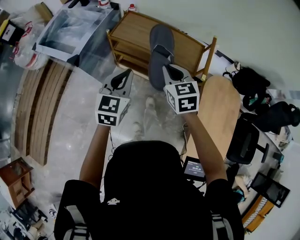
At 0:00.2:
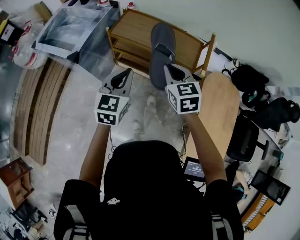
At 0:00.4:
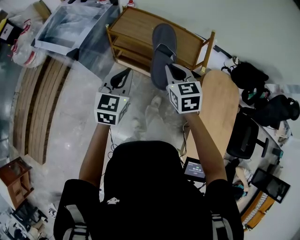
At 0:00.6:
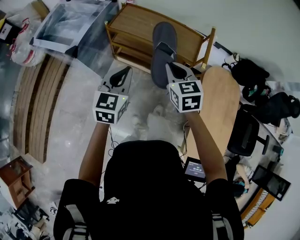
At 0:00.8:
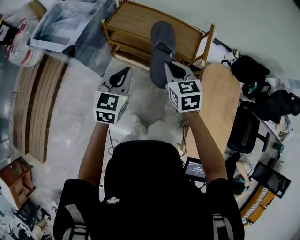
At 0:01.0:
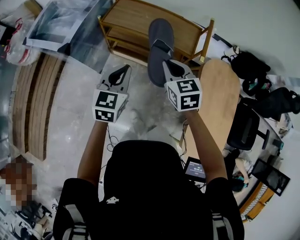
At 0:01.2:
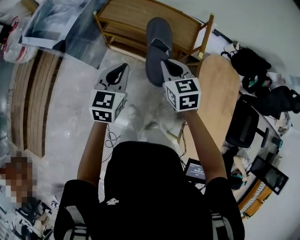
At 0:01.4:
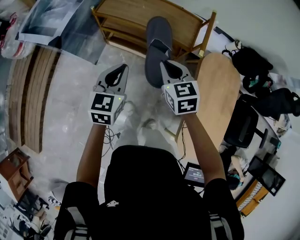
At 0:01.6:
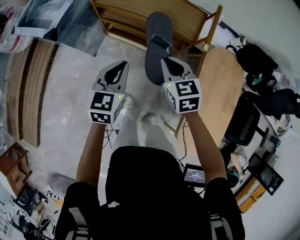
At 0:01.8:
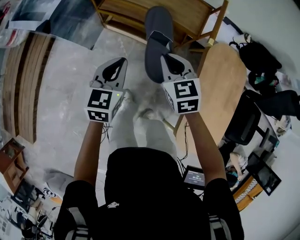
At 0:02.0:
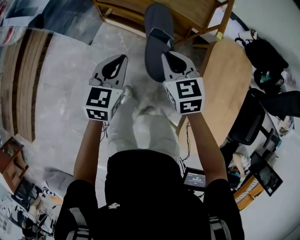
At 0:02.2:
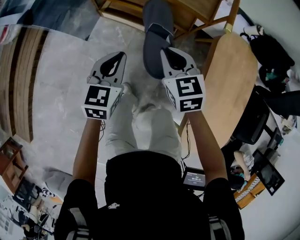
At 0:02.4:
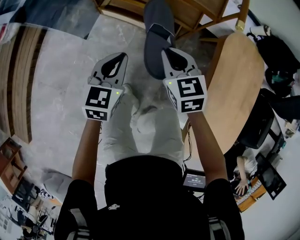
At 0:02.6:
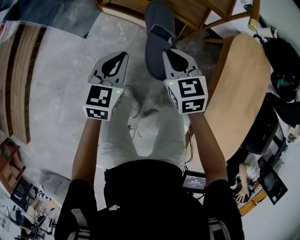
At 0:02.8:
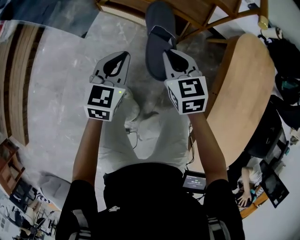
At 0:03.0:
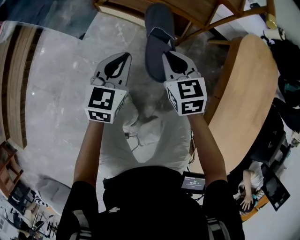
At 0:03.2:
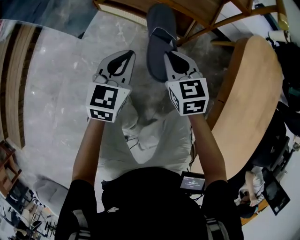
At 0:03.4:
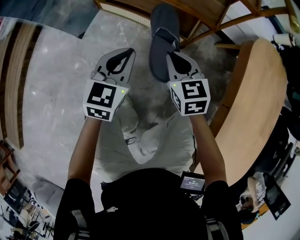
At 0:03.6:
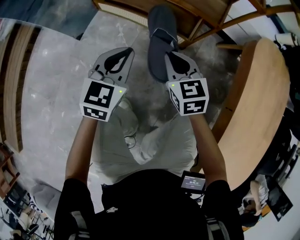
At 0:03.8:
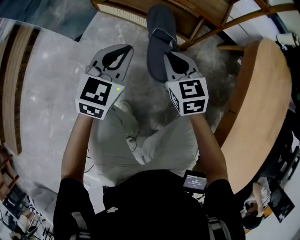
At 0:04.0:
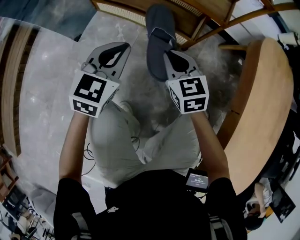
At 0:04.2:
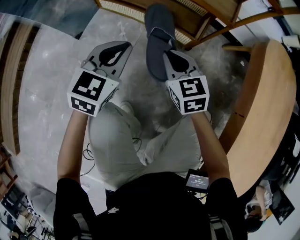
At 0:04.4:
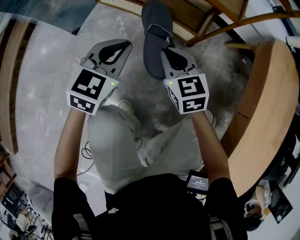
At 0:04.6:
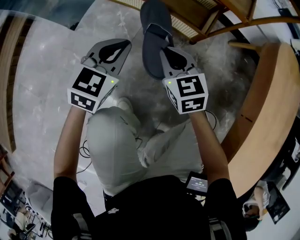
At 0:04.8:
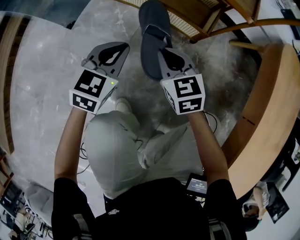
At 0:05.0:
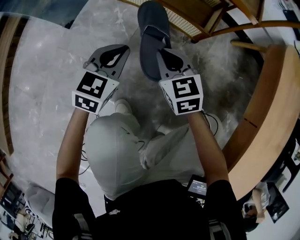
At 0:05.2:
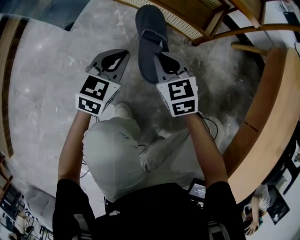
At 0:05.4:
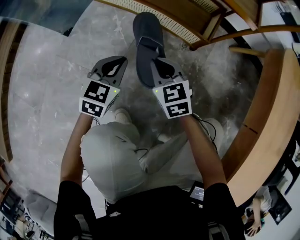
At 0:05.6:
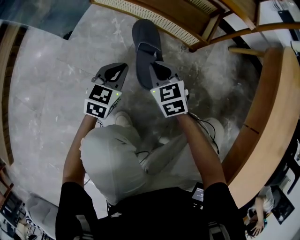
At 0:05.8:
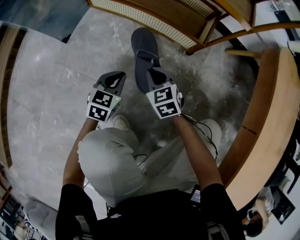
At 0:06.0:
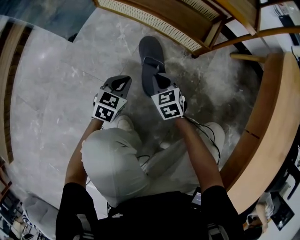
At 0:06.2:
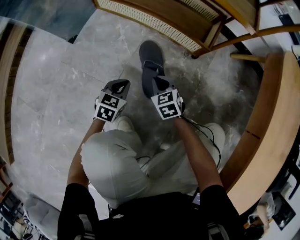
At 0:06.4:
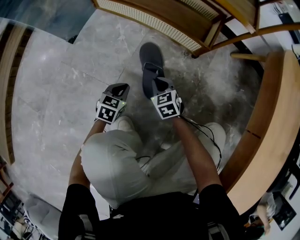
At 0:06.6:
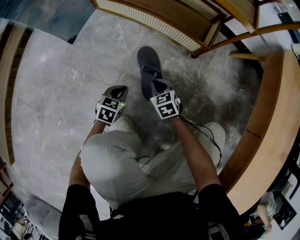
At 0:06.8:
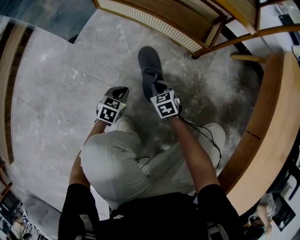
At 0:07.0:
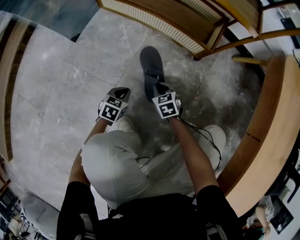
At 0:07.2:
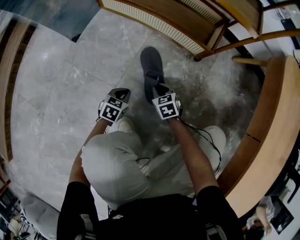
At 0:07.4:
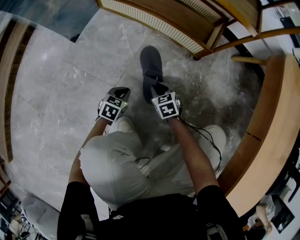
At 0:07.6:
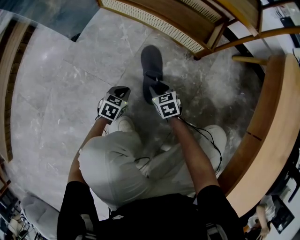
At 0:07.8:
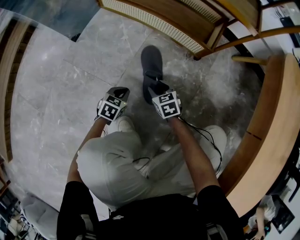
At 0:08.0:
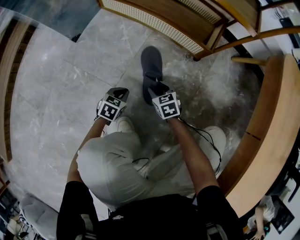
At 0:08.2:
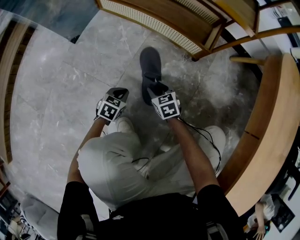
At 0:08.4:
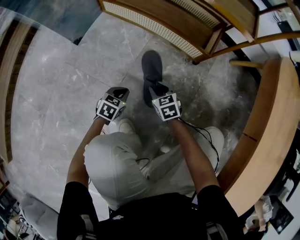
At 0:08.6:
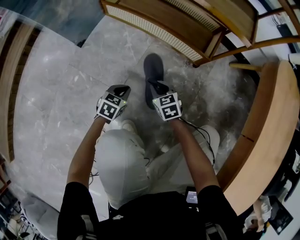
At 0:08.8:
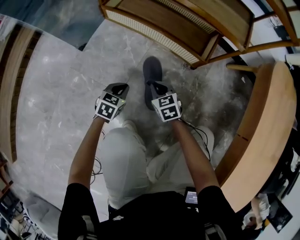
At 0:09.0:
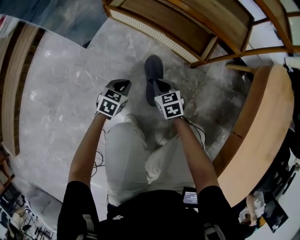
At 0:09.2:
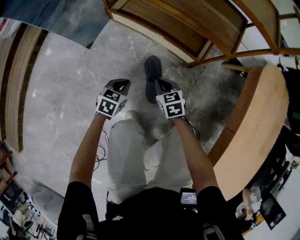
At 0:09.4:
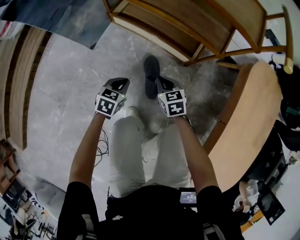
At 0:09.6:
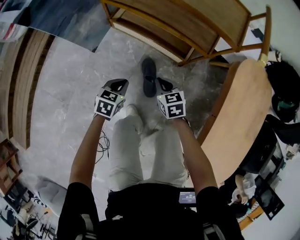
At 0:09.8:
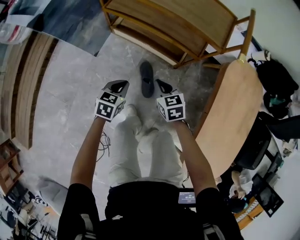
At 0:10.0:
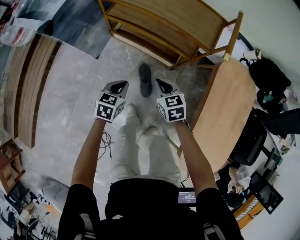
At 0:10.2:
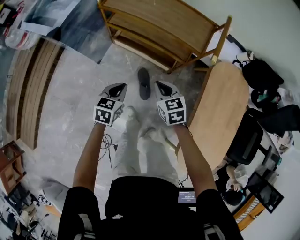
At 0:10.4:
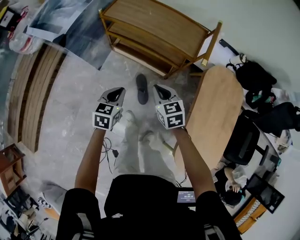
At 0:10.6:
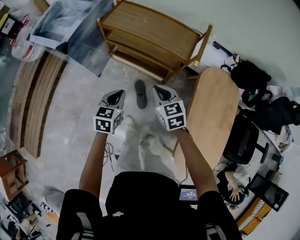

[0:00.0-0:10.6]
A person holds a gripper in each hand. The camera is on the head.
0:00.0 to 0:01.6: The grippers both shift downward, backward and to the right by approximately 15 cm.
0:01.6 to 0:03.0: The two grippers go roughly 35 cm downward.
0:03.0 to 0:04.6: The grippers both shift downward by about 20 cm.
0:04.6 to 0:06.0: The two grippers go about 20 cm downward.
0:06.0 to 0:07.6: Both grippers travel together downward, about 10 cm. The right gripper opens.
0:07.6 to 0:09.0: The right gripper moves upward, about 15 cm, and closes its fingers. The left gripper is displaced upward and forward by approximately 15 cm.
0:09.0 to 0:10.6: Both grippers travel together upward, roughly 60 cm.

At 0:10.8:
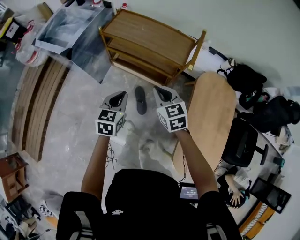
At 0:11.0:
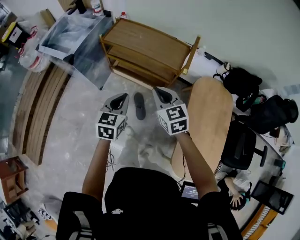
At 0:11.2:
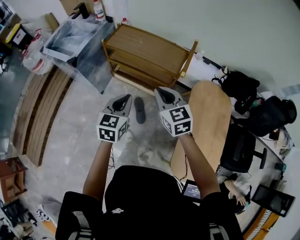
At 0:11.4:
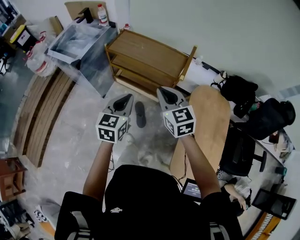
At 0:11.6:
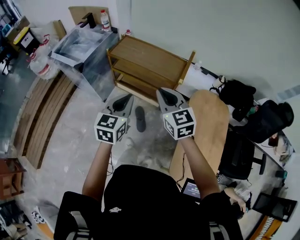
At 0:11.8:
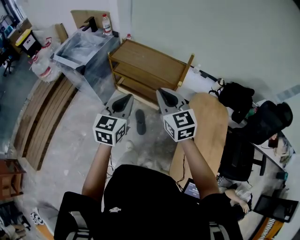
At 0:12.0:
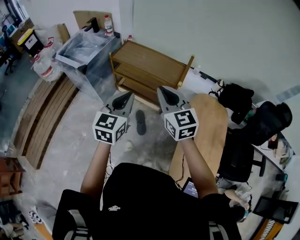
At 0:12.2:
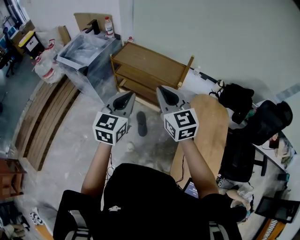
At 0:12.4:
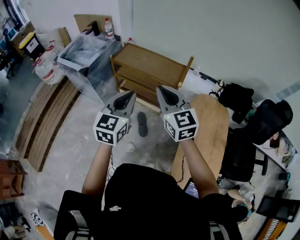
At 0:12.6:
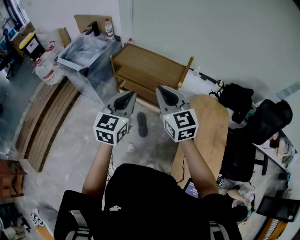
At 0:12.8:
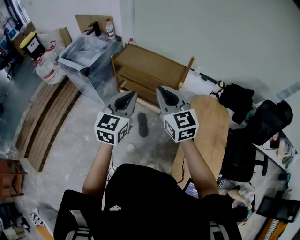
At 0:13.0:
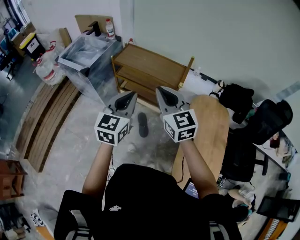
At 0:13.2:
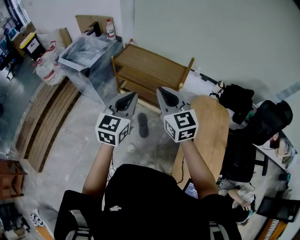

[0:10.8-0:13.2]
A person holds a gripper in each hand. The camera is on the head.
0:10.8 to 0:12.0: Both grippers move upward, roughly 25 cm. The right gripper turns by roughly 20 degrees. Meanwhile the left gripper swivels roughly 20 degrees.
0:12.0 to 0:13.2: The grippers stay close to where they were, moving slightly.

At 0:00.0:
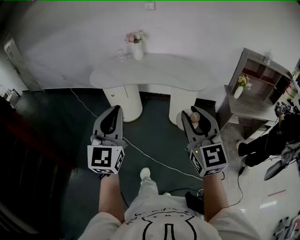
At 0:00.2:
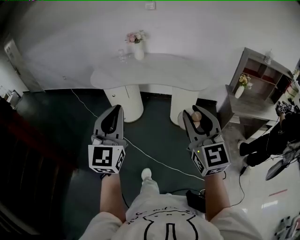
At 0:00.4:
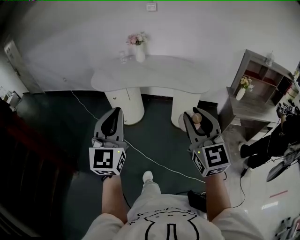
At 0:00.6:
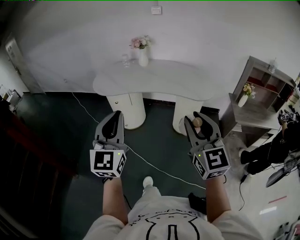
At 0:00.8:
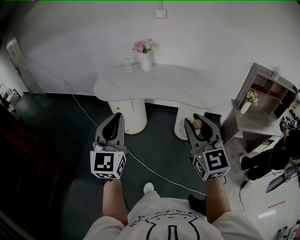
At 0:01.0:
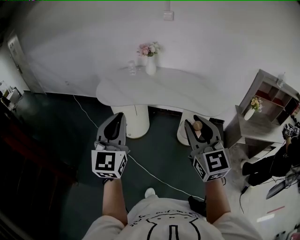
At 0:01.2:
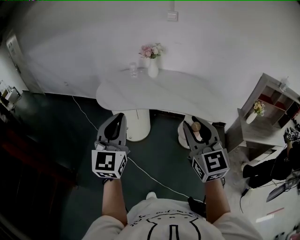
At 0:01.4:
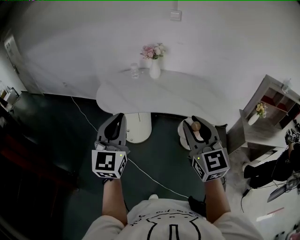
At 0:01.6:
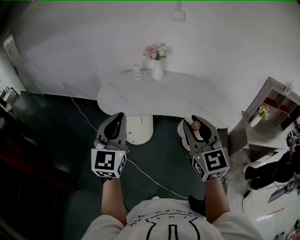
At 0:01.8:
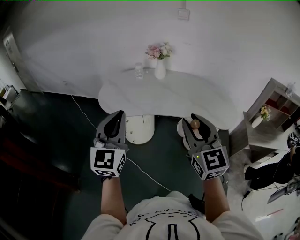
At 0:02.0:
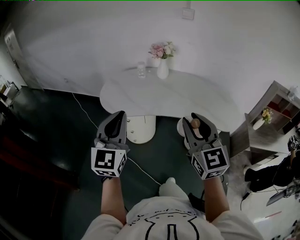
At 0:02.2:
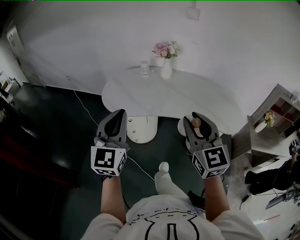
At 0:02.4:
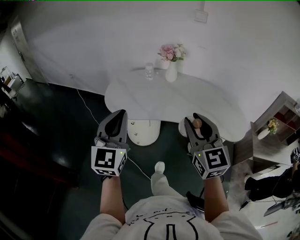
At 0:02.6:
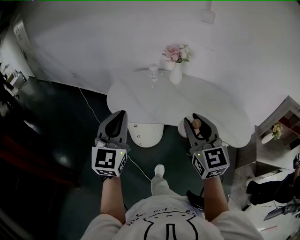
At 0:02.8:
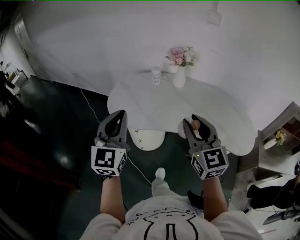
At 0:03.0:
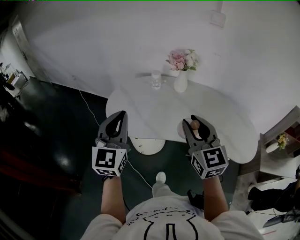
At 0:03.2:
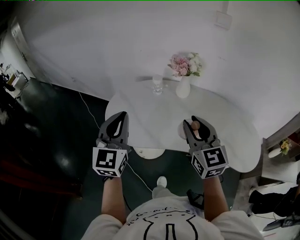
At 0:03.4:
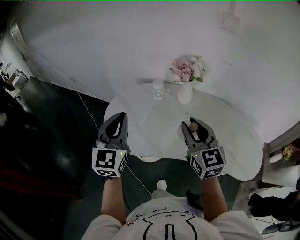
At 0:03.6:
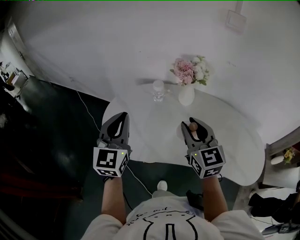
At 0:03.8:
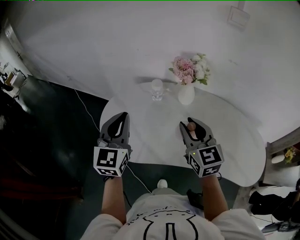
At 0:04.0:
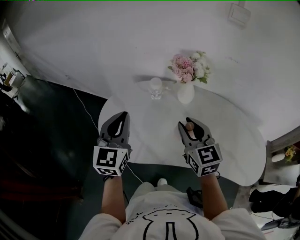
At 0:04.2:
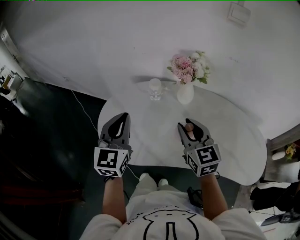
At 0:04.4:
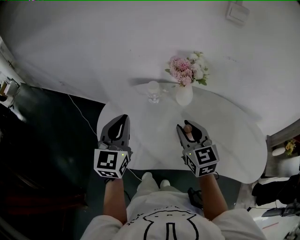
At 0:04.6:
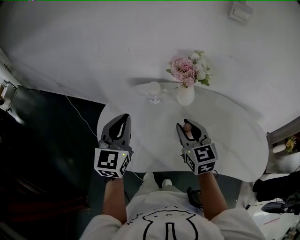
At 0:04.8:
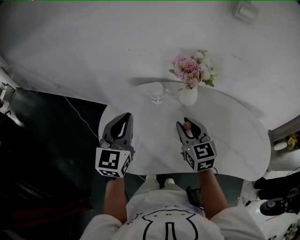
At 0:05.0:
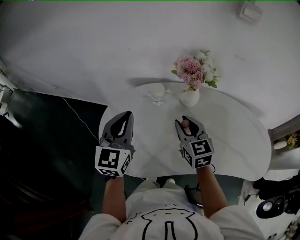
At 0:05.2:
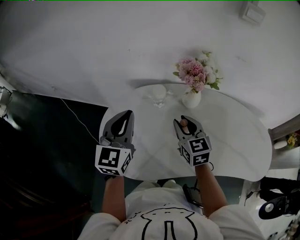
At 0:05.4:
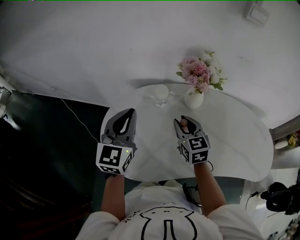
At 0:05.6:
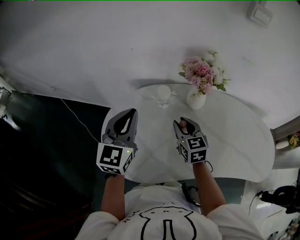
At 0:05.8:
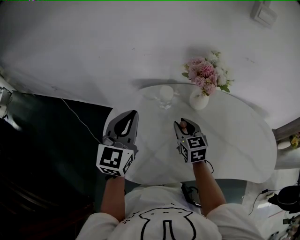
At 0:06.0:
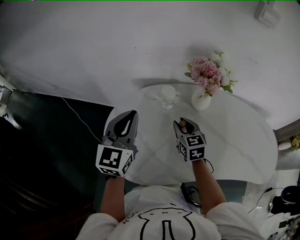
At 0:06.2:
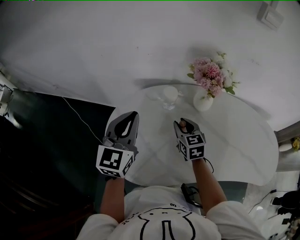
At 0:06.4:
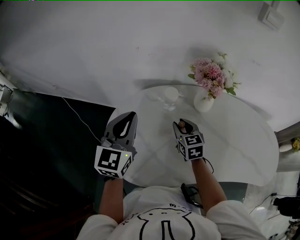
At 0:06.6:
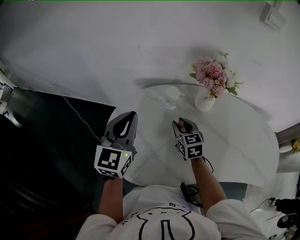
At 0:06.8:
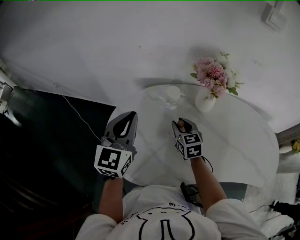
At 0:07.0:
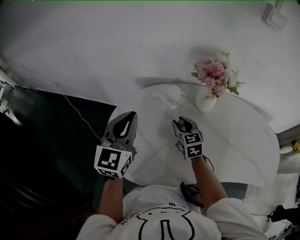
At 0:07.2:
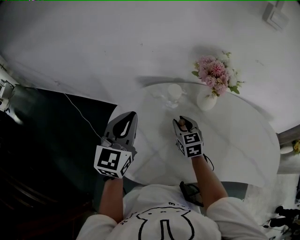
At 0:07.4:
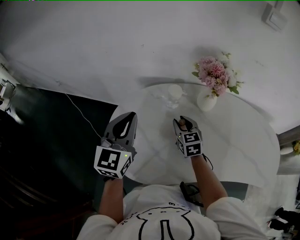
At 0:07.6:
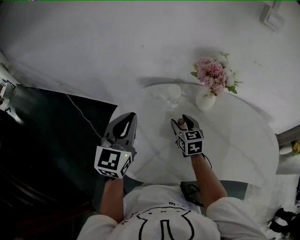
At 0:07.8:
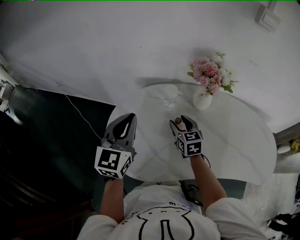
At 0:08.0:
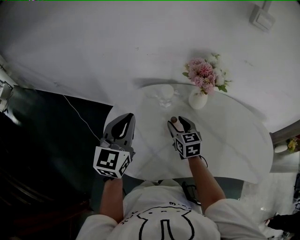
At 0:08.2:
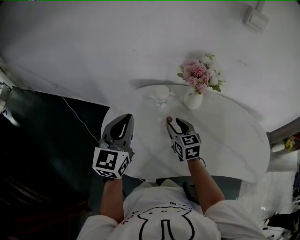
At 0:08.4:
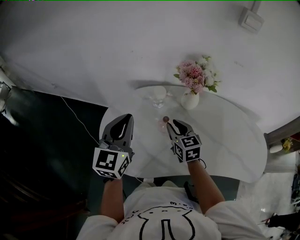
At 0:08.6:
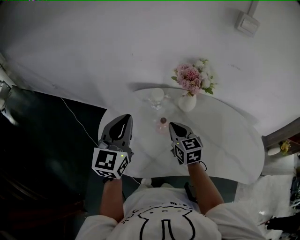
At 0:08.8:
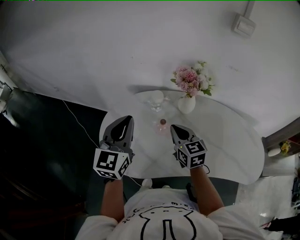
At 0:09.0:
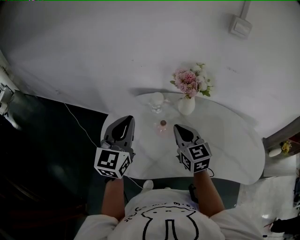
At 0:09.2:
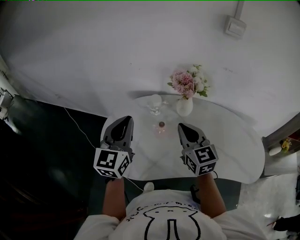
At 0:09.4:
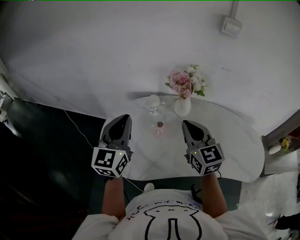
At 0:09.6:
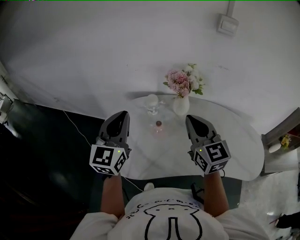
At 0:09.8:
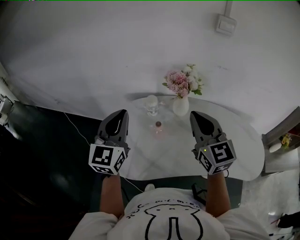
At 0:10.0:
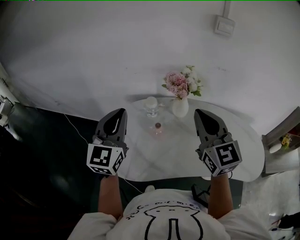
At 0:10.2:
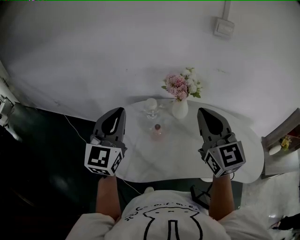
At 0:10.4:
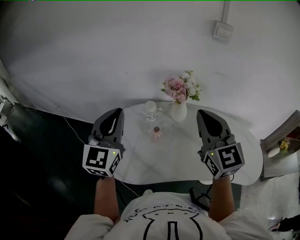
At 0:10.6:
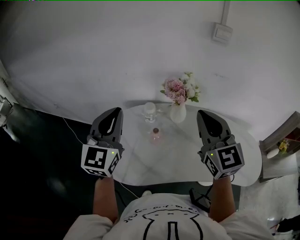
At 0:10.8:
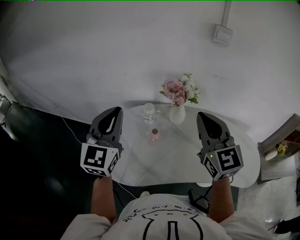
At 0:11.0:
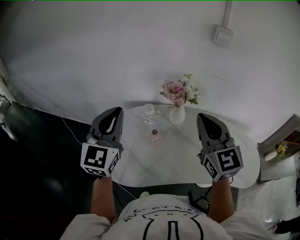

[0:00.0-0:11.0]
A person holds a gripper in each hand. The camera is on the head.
0:00.0 to 0:01.6: Both grippers move forward and to the left, approximately 35 cm.
0:01.6 to 0:03.2: The two grippers go approximately 30 cm forward.
0:03.2 to 0:04.8: The left gripper is displaced forward by approximately 25 cm; the right gripper shifts roughly 25 cm forward and downward.
0:04.8 to 0:06.2: The left gripper goes some 5 cm forward. Meanwhile the right gripper is displaced downward, forward and to the left by some 20 cm.
0:06.2 to 0:07.8: The right gripper opens up.
0:07.8 to 0:09.4: The left gripper shifts approximately 10 cm upward and backward, while the right gripper heads upward and backward, covering some 25 cm, changes its angle by approximately 20 degrees, and closes.
0:09.4 to 0:11.0: Both grippers travel together upward, some 10 cm.
